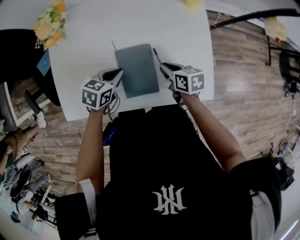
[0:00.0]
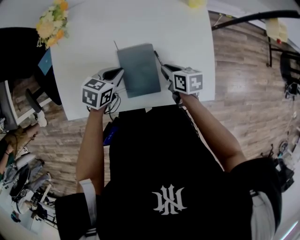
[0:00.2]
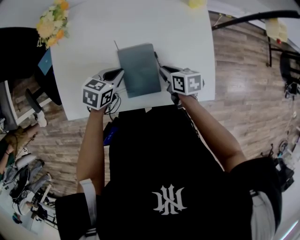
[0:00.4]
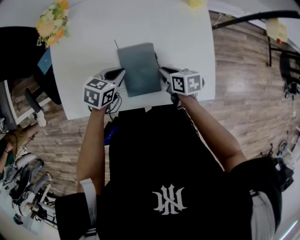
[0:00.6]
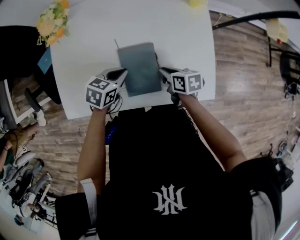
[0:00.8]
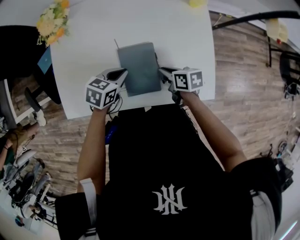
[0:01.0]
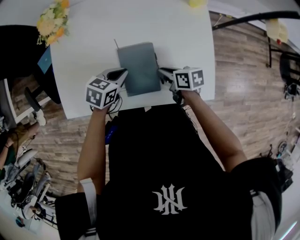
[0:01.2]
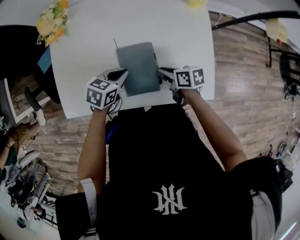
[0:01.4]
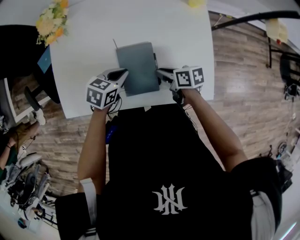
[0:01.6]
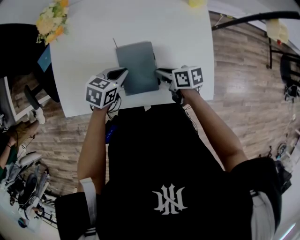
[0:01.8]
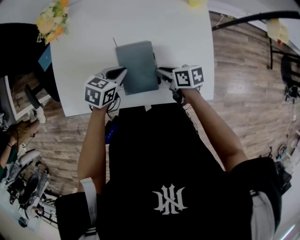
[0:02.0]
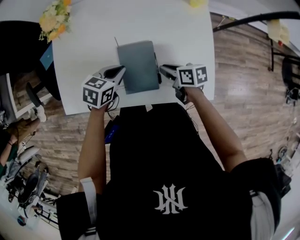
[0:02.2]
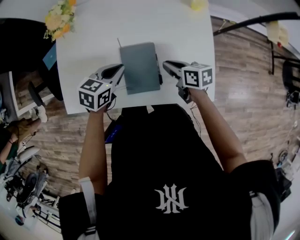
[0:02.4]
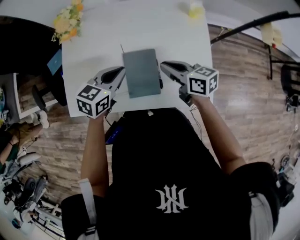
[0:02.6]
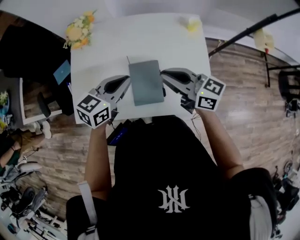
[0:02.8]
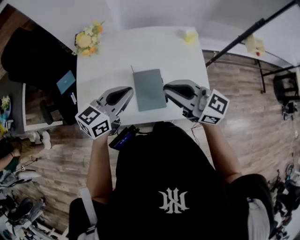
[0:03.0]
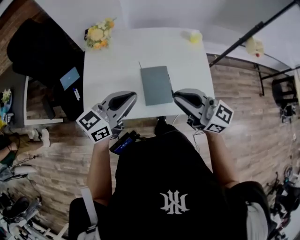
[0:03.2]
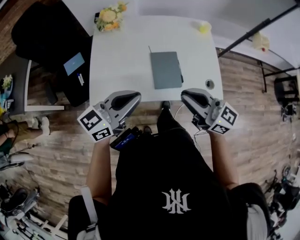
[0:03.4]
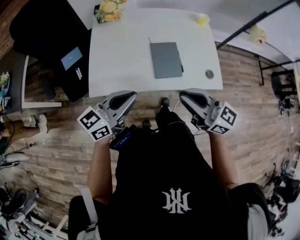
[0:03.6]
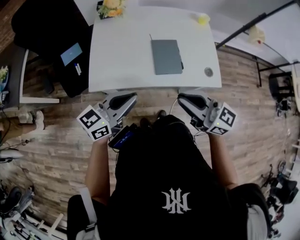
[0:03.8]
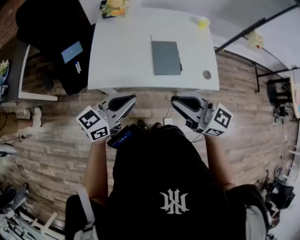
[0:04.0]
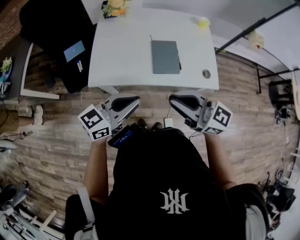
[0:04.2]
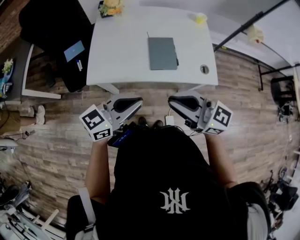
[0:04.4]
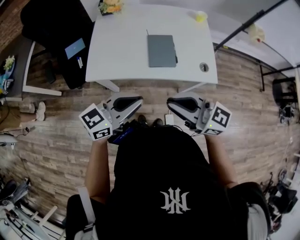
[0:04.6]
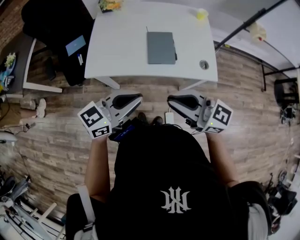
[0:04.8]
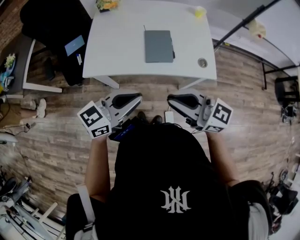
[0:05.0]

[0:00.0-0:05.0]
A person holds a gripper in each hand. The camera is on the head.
0:00.0 to 0:01.6: The grippers make only small movements.
0:01.6 to 0:03.4: The right gripper heads upward and backward, covering some 35 cm, and points its fingers approximately 40 degrees further upward; the left gripper travels upward, backward and to the left by roughly 30 cm, and points its fingers roughly 50 degrees further upward.
0:03.4 to 0:05.0: The right gripper shifts by roughly 15 cm. Meanwhile the left gripper changes place by approximately 15 cm.

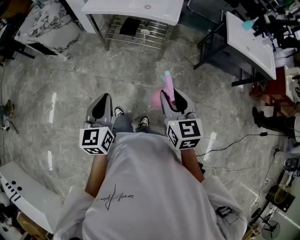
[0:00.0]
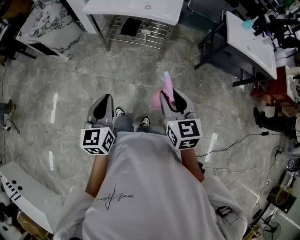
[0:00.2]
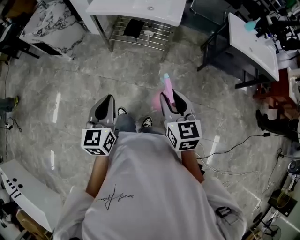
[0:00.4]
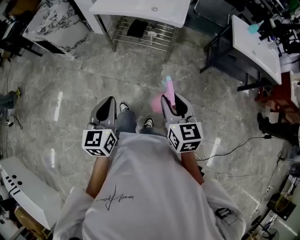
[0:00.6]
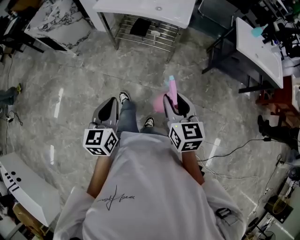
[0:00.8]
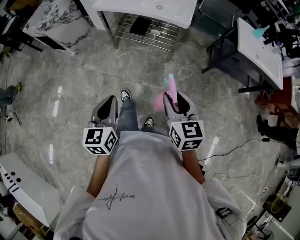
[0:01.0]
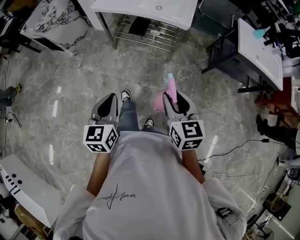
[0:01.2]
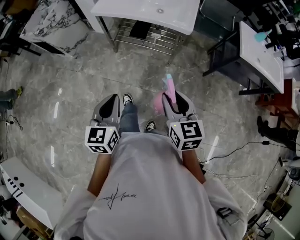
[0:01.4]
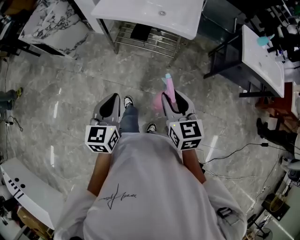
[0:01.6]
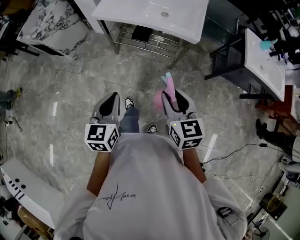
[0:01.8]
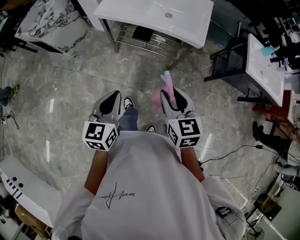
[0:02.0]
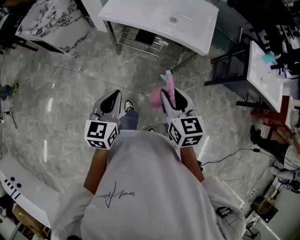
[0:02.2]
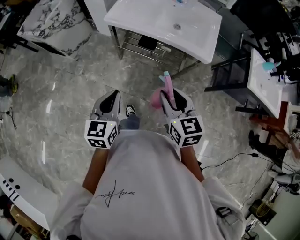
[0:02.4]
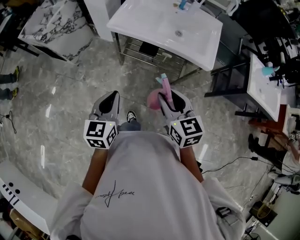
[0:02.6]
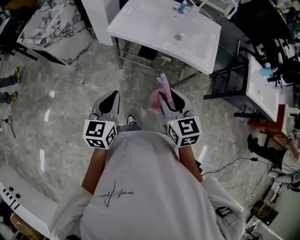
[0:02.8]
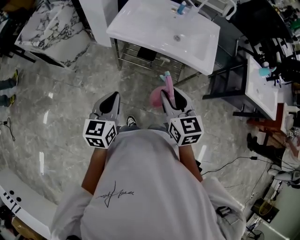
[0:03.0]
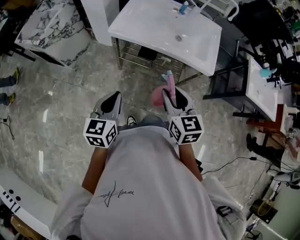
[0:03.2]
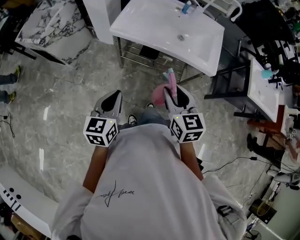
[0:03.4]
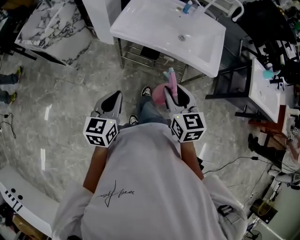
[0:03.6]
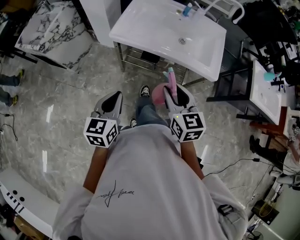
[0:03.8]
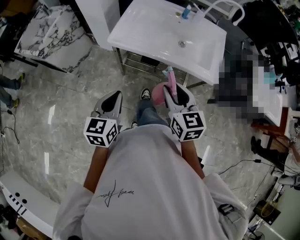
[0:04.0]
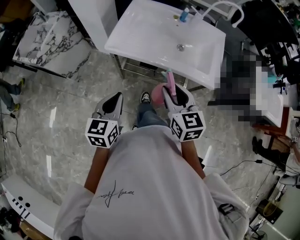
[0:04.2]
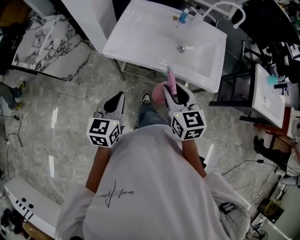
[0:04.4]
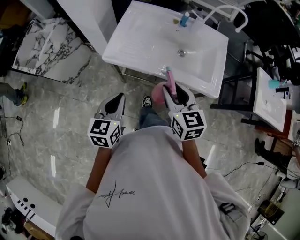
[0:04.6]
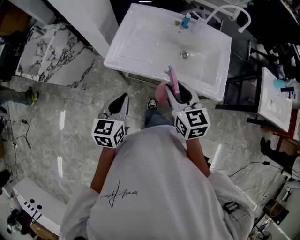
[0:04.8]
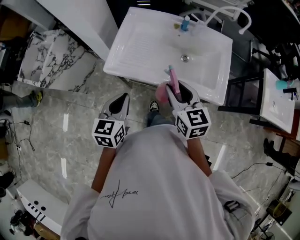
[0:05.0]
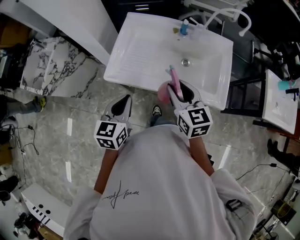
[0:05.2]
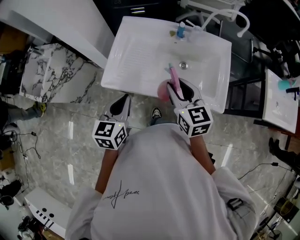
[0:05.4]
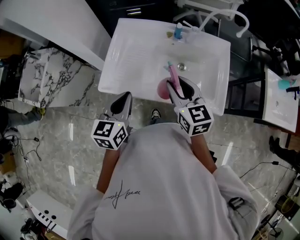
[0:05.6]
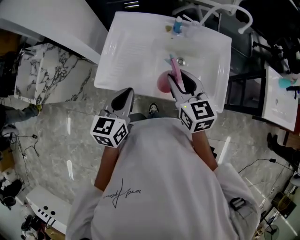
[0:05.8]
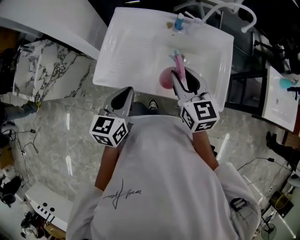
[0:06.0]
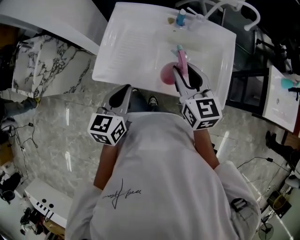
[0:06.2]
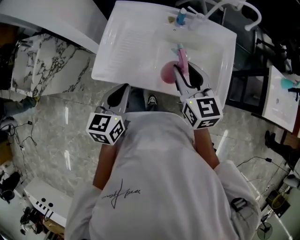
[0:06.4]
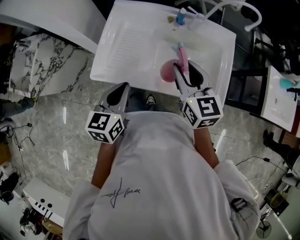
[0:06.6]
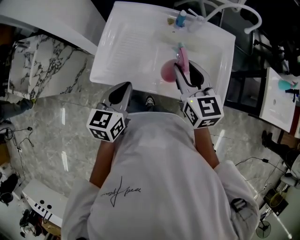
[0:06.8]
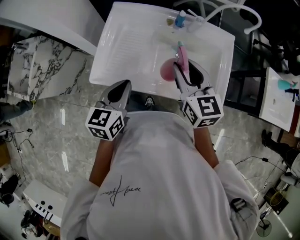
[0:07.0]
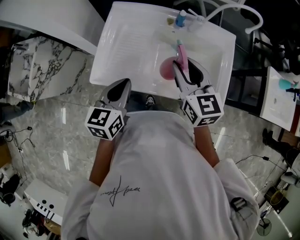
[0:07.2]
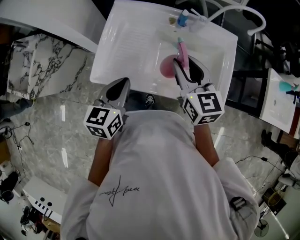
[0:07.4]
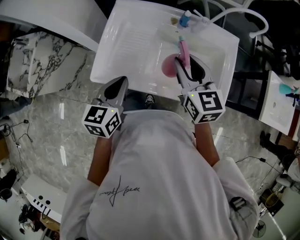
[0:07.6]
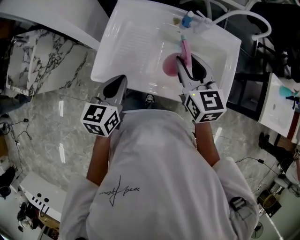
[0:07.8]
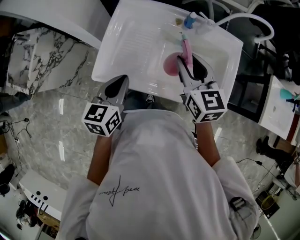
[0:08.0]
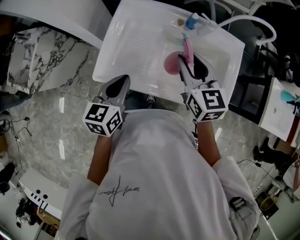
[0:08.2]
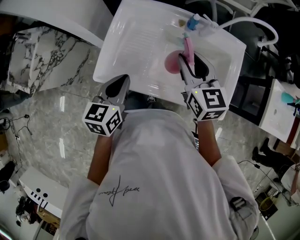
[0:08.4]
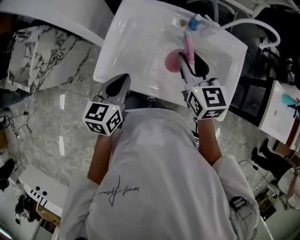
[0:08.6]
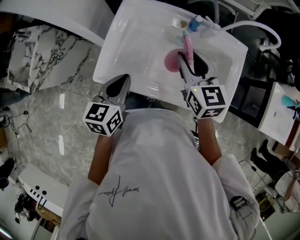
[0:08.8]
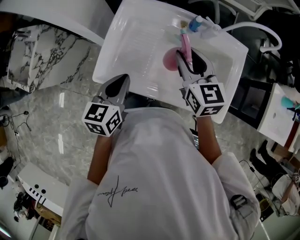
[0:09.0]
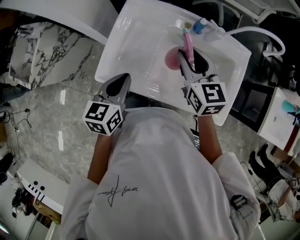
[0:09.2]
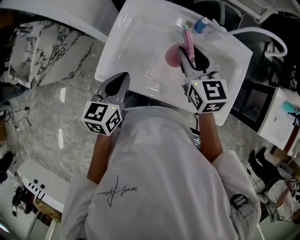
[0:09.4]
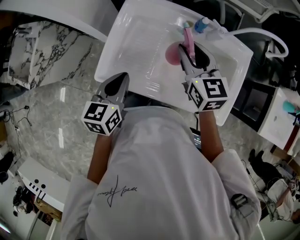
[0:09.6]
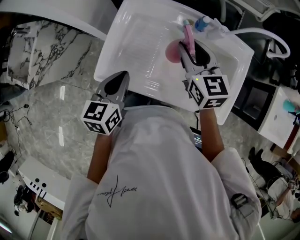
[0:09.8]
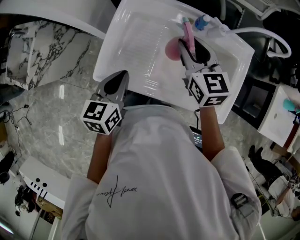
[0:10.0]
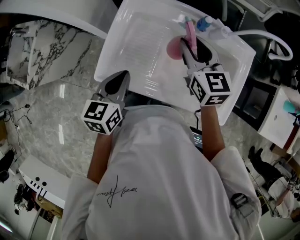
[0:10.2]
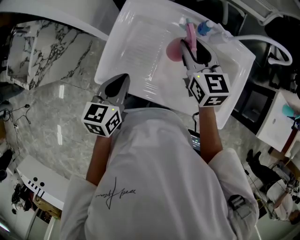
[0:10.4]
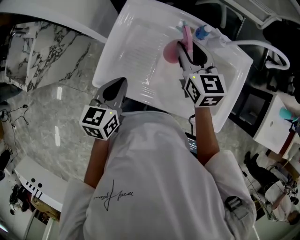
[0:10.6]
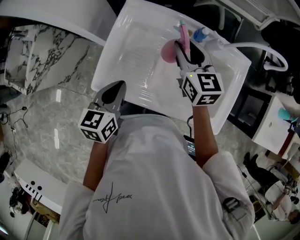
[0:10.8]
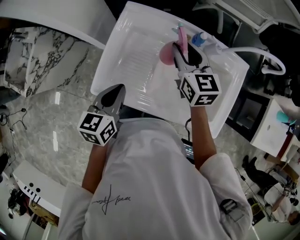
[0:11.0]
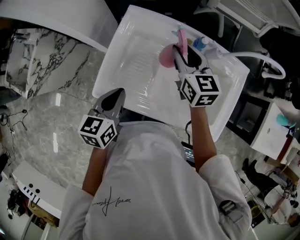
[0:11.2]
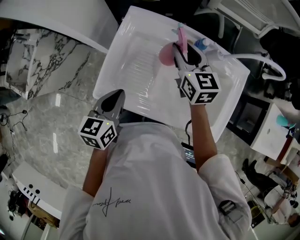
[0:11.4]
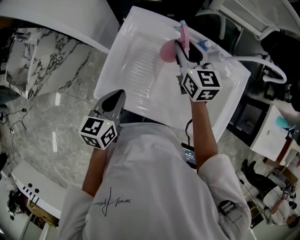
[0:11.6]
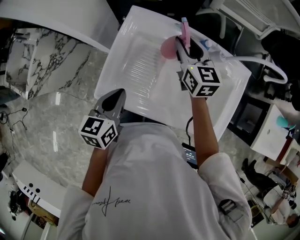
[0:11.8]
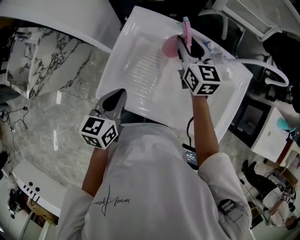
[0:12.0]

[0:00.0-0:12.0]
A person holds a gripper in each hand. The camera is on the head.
0:00.0 to 0:01.6: The right gripper moves forward and to the left, roughly 15 cm; the left gripper is displaced forward by approximately 10 cm.
0:01.6 to 0:03.0: Both grippers move forward and to the left, roughly 25 cm.
0:03.0 to 0:04.4: The grippers both shift forward by about 15 cm.
0:04.4 to 0:06.0: The right gripper is displaced forward by about 20 cm. The left gripper moves forward and to the right, some 20 cm.
0:06.0 to 0:07.6: The right gripper moves forward, roughly 5 cm. The left gripper shifts by about 5 cm.
0:07.6 to 0:09.0: The right gripper heads forward, covering approximately 5 cm.
0:09.0 to 0:10.4: The right gripper moves forward, roughly 5 cm.
0:10.4 to 0:12.0: The right gripper moves forward, roughly 10 cm.

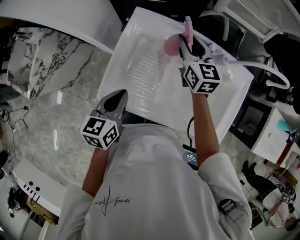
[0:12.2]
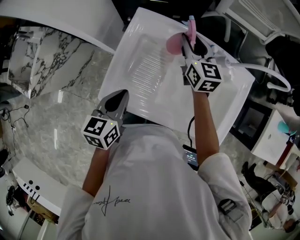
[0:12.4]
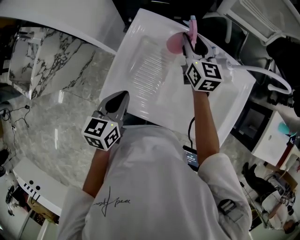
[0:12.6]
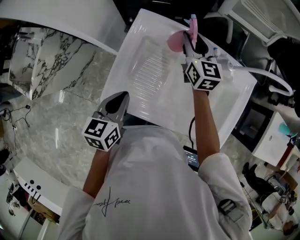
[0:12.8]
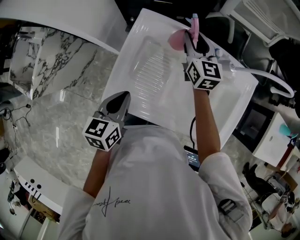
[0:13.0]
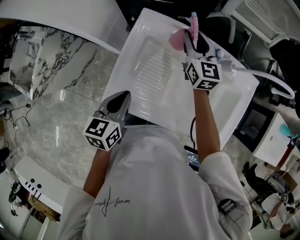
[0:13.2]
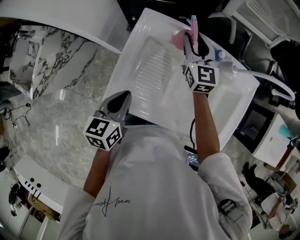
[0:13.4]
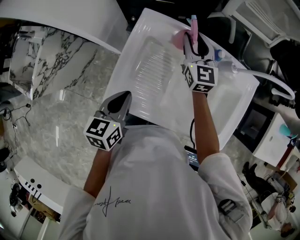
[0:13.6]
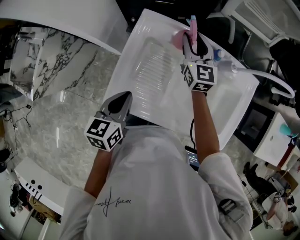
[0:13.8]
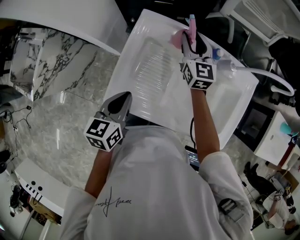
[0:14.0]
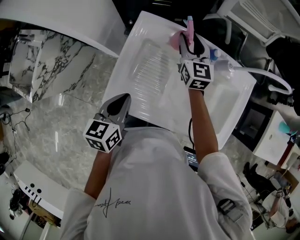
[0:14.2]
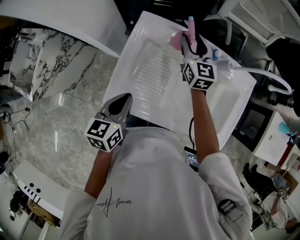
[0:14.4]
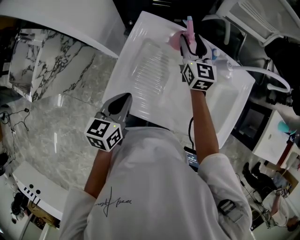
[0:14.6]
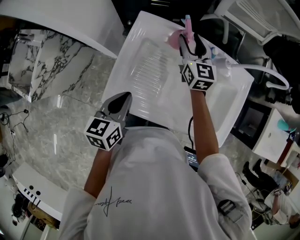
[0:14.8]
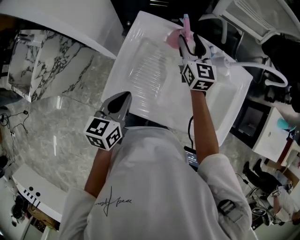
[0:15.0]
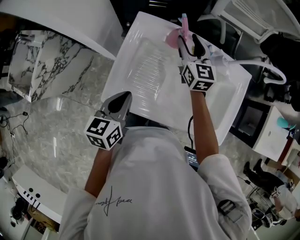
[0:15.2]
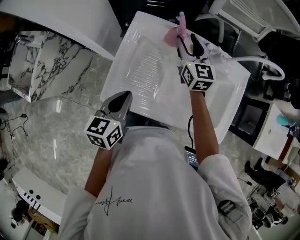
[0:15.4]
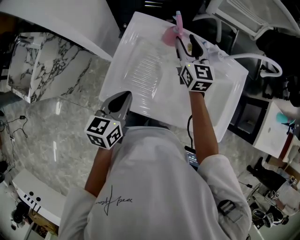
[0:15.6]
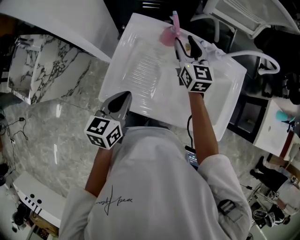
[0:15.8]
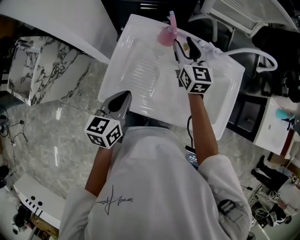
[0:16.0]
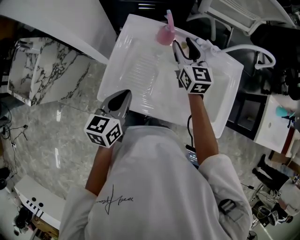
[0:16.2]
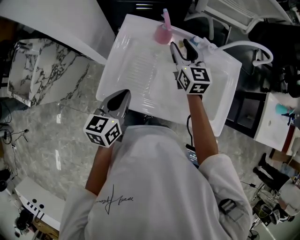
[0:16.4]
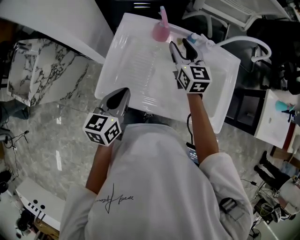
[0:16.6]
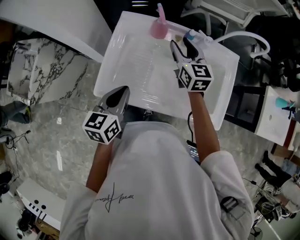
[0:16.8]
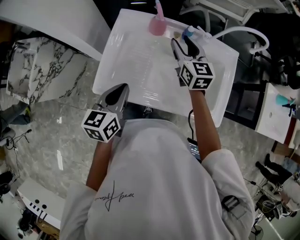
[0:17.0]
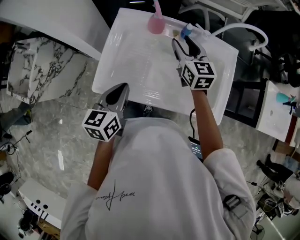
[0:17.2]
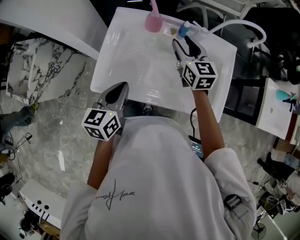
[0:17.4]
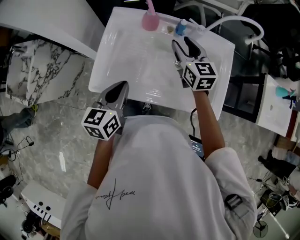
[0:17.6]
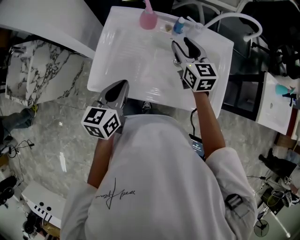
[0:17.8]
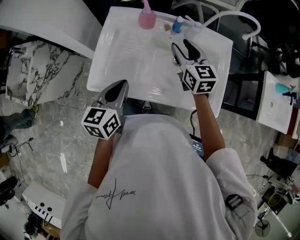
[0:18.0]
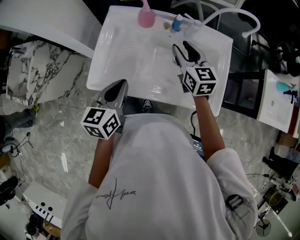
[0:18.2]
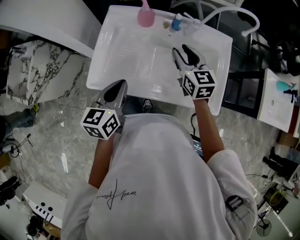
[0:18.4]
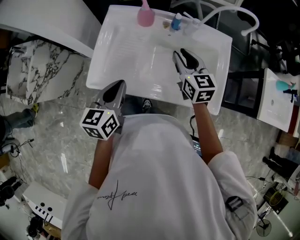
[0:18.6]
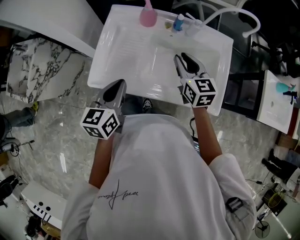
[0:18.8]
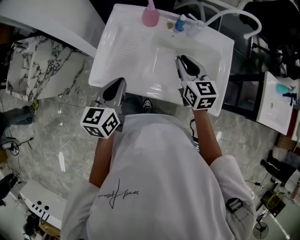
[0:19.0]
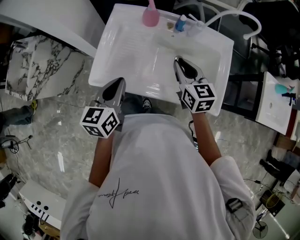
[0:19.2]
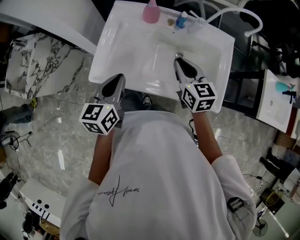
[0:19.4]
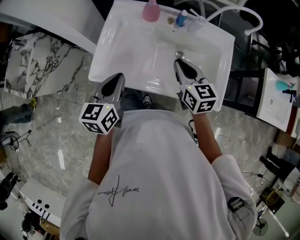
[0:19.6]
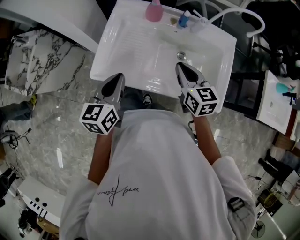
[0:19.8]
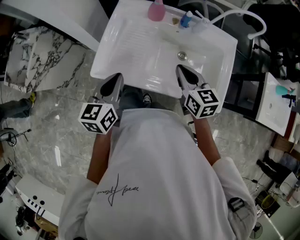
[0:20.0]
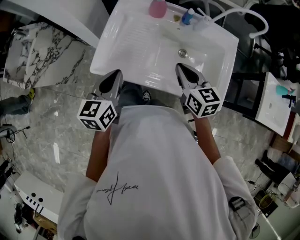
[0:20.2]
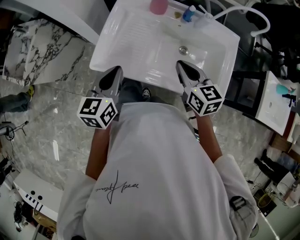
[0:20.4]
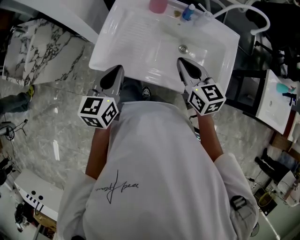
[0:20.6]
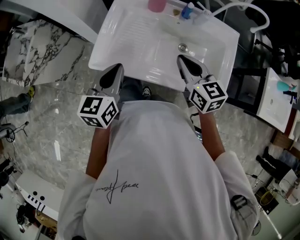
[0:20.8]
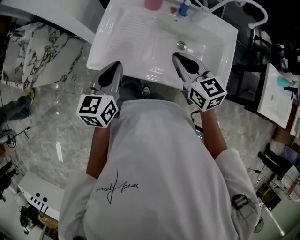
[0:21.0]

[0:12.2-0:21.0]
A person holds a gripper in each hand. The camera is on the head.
0:12.2 to 0:15.2: The grippers make only small movements.
0:15.2 to 0:16.6: The right gripper travels backward by roughly 5 cm.
0:16.6 to 0:18.0: The right gripper is displaced to the right and backward by some 10 cm; the left gripper ends up about 5 cm from where it was.
0:18.0 to 0:19.6: The right gripper heads backward, covering approximately 10 cm, and closes up.
0:19.6 to 0:21.0: The grippers stay close to where they were, moving slightly.
